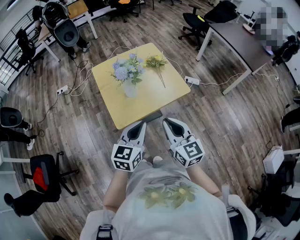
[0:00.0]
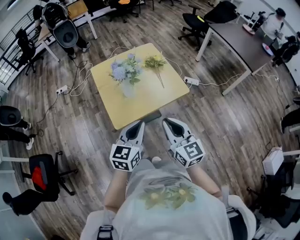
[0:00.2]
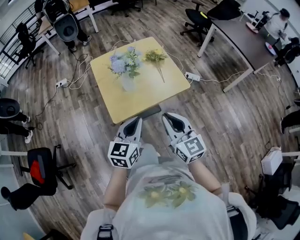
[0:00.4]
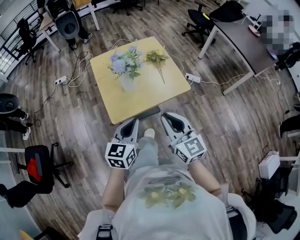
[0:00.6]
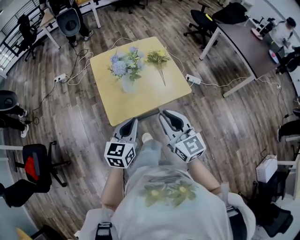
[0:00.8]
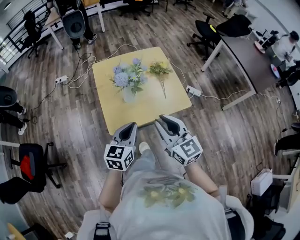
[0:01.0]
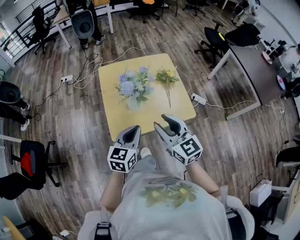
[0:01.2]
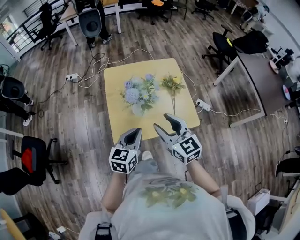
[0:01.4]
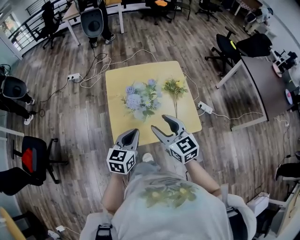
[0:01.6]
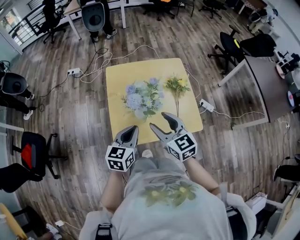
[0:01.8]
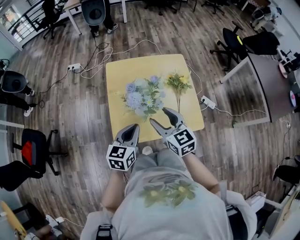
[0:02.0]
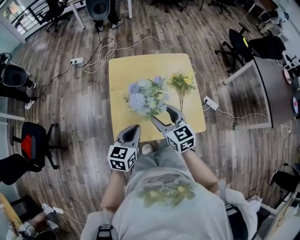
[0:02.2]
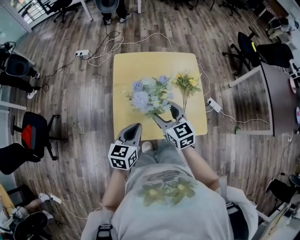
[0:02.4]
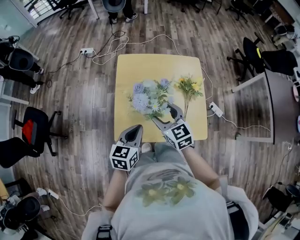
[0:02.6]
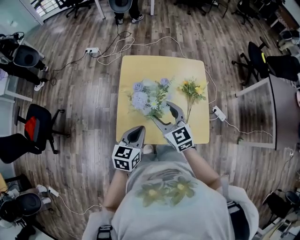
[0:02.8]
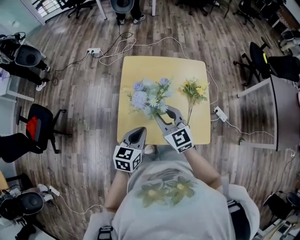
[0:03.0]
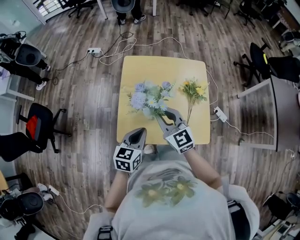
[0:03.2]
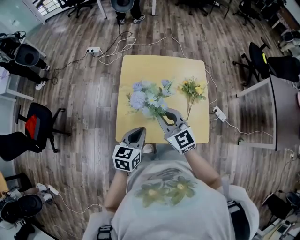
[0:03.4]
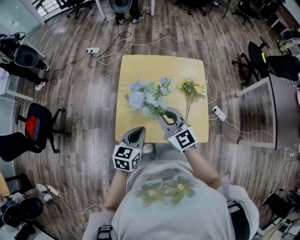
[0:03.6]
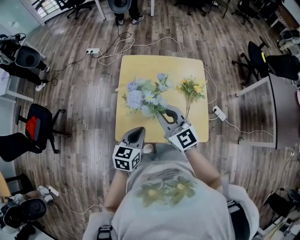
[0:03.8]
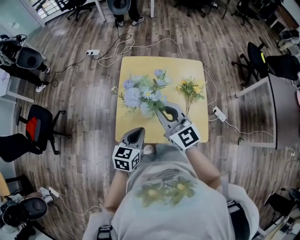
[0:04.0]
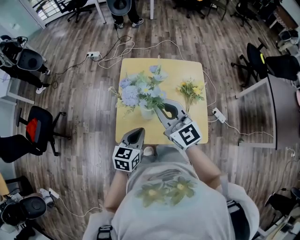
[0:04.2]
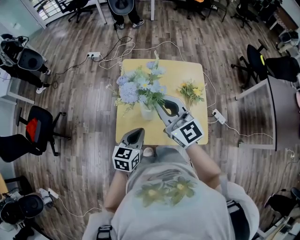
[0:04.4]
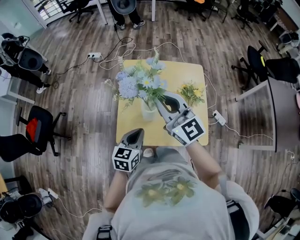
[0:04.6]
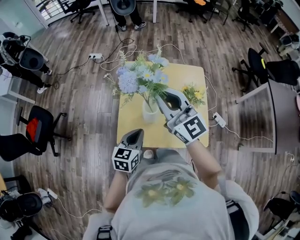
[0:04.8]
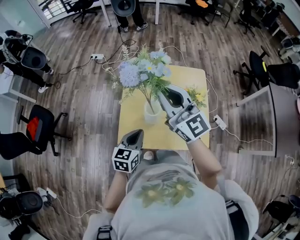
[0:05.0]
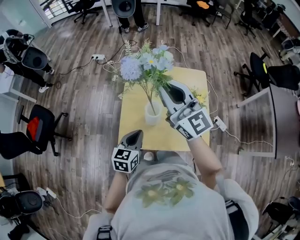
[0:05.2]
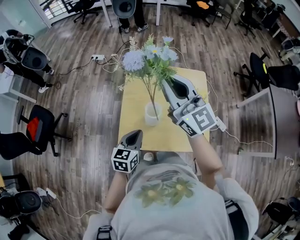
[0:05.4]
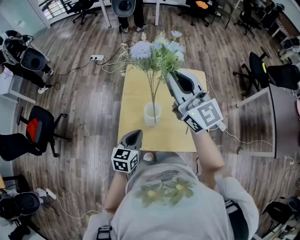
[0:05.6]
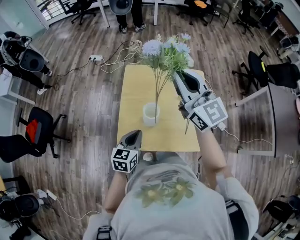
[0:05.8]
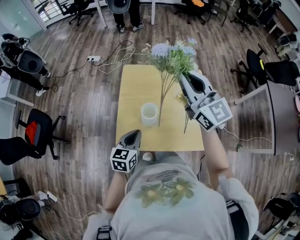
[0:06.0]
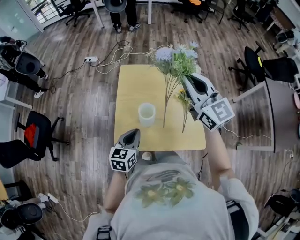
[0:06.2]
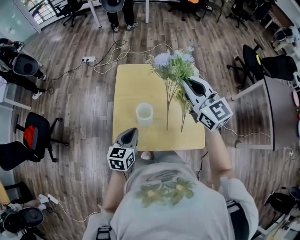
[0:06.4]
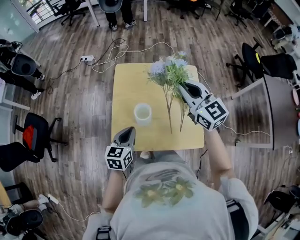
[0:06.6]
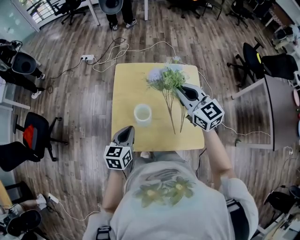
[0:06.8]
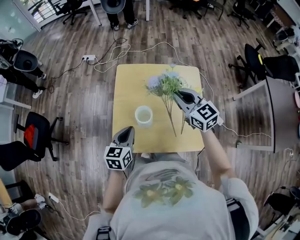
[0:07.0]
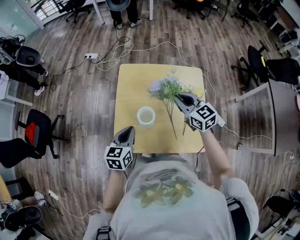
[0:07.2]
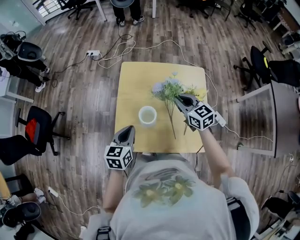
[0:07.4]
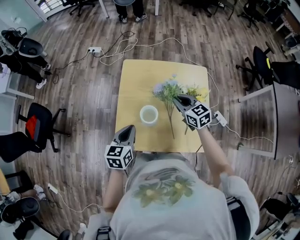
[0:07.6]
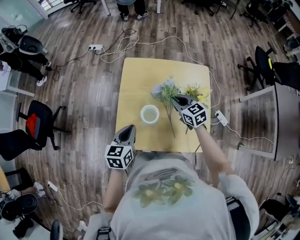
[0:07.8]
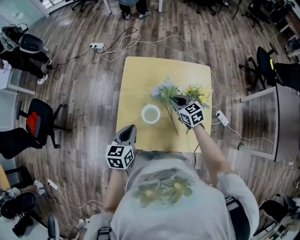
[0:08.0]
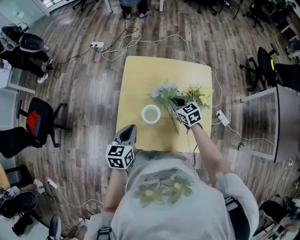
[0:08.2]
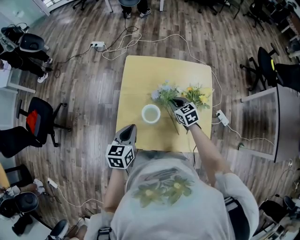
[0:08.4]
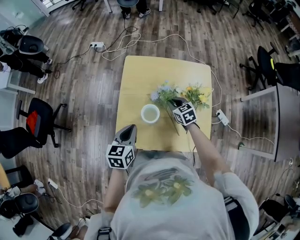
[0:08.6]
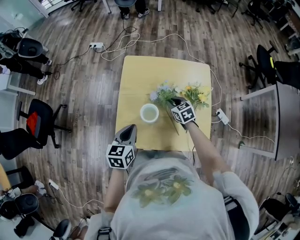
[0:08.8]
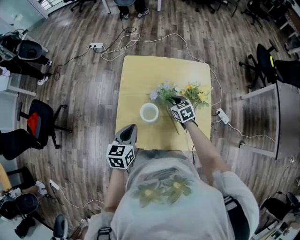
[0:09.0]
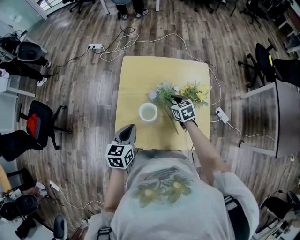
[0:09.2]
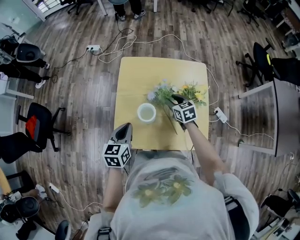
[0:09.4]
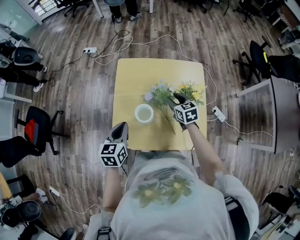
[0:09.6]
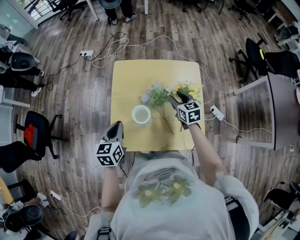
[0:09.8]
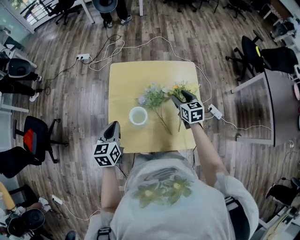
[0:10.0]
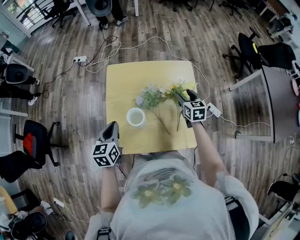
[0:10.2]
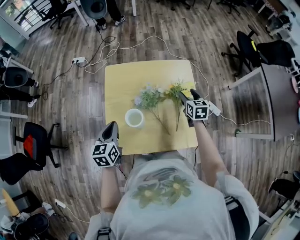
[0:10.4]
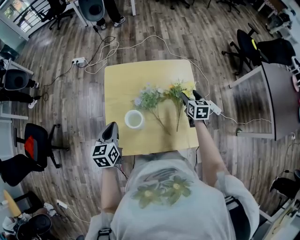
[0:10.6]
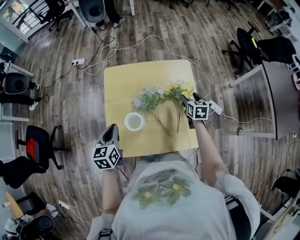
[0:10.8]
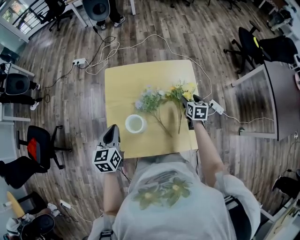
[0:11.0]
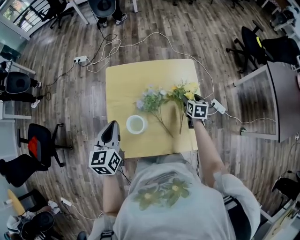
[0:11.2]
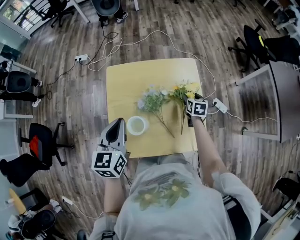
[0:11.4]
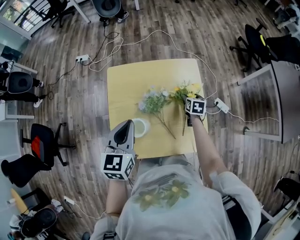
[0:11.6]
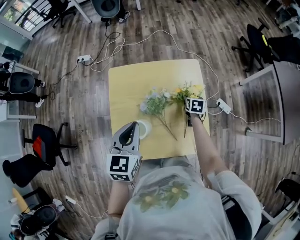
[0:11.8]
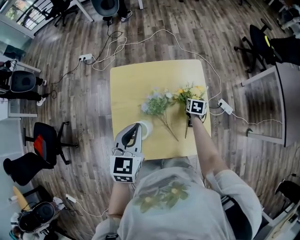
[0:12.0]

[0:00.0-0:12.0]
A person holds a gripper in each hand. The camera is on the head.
0:00.0 to 0:01.6: The two grippers go roughly 25 cm forward. The right gripper turns by roughly 30 degrees, and opens.
0:01.6 to 0:03.0: The right gripper shifts about 15 cm forward, and closes; the left gripper is displaced forward by some 10 cm.
0:03.0 to 0:04.4: The right gripper shifts about 10 cm upward.
0:04.4 to 0:06.0: The right gripper heads upward, to the right and forward, covering about 15 cm.
0:06.0 to 0:07.6: The right gripper is displaced downward by about 30 cm, and tips its fingers downward by about 30 degrees, while the left gripper is displaced forward by approximately 5 cm.
0:07.6 to 0:09.0: The right gripper shifts approximately 10 cm downward.
0:09.0 to 0:10.4: The right gripper is displaced to the right by some 20 cm, turns by some 30 degrees, and opens. Meanwhile the left gripper is displaced forward by about 5 cm.
0:10.4 to 0:12.0: The left gripper shifts some 15 cm to the right, forward and upward. The right gripper heads downward and forward, covering approximately 15 cm, and swivels approximately 30 degrees.

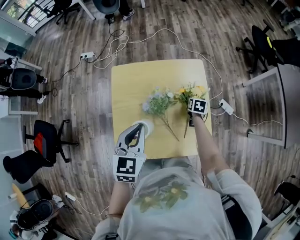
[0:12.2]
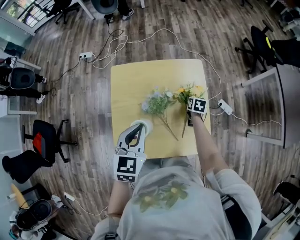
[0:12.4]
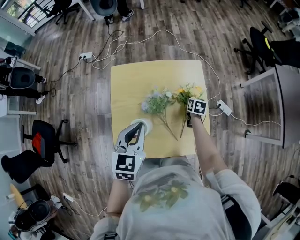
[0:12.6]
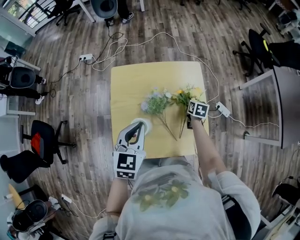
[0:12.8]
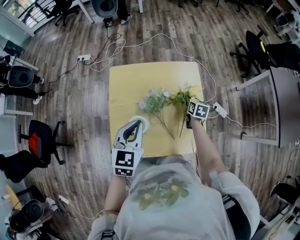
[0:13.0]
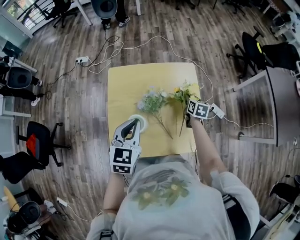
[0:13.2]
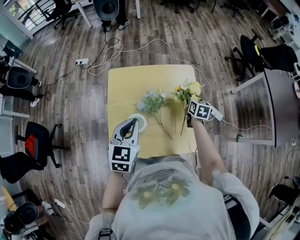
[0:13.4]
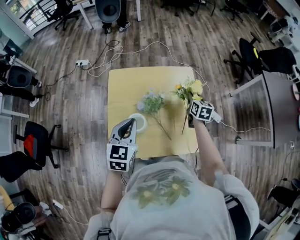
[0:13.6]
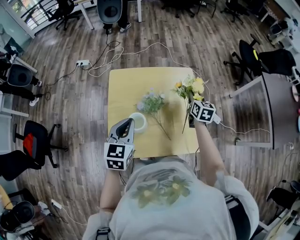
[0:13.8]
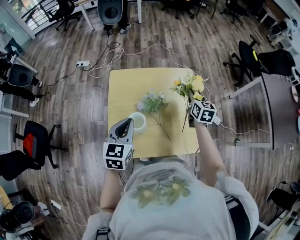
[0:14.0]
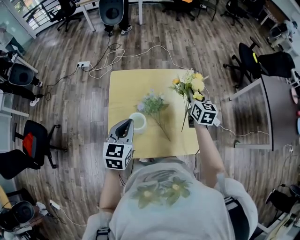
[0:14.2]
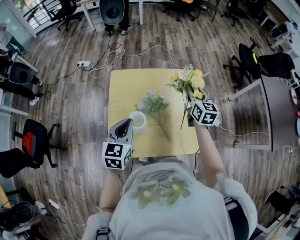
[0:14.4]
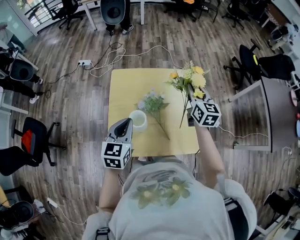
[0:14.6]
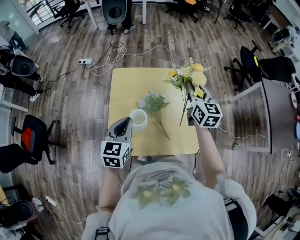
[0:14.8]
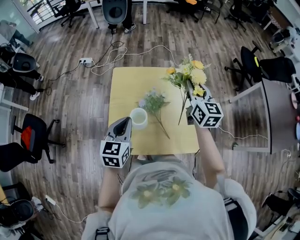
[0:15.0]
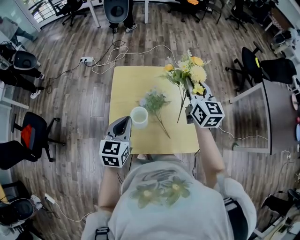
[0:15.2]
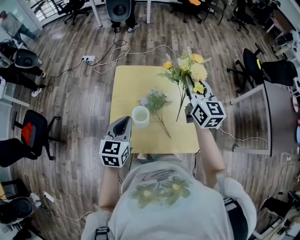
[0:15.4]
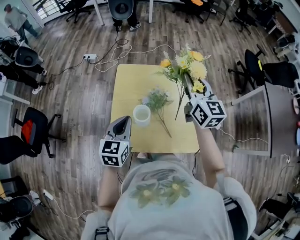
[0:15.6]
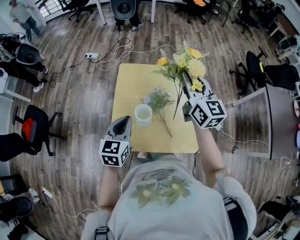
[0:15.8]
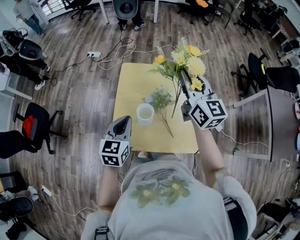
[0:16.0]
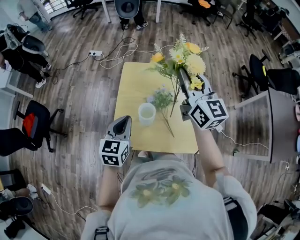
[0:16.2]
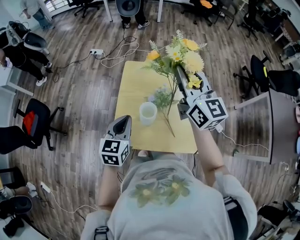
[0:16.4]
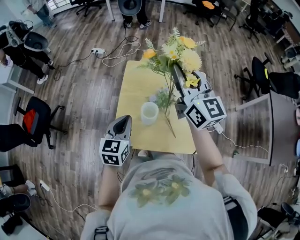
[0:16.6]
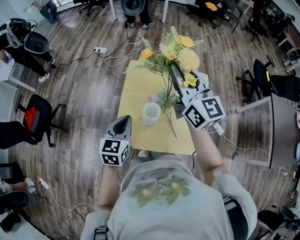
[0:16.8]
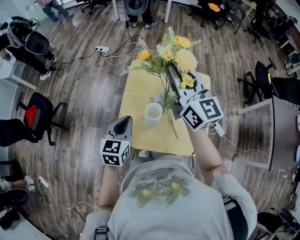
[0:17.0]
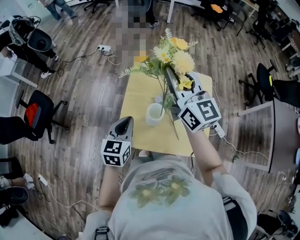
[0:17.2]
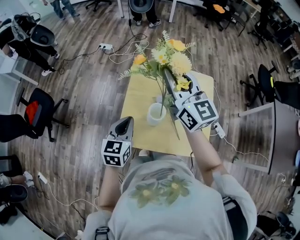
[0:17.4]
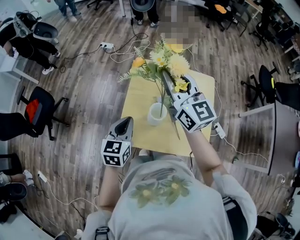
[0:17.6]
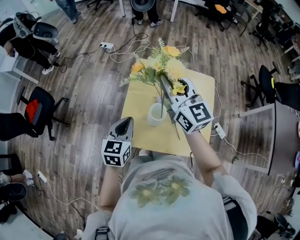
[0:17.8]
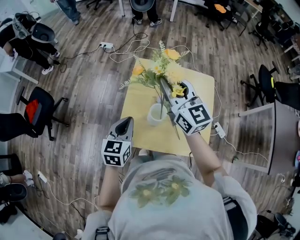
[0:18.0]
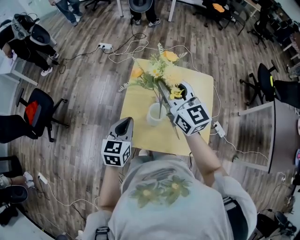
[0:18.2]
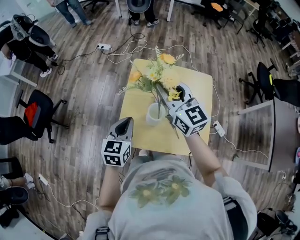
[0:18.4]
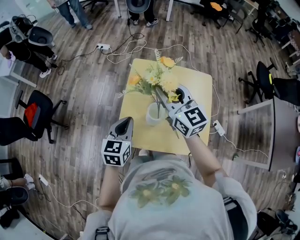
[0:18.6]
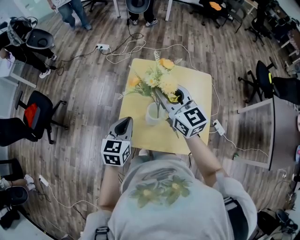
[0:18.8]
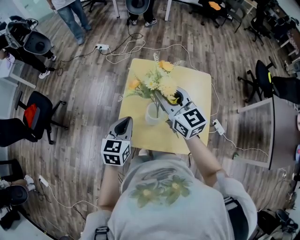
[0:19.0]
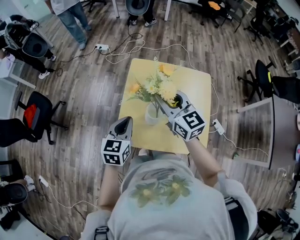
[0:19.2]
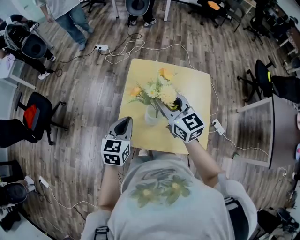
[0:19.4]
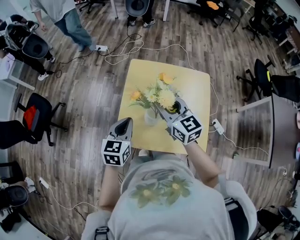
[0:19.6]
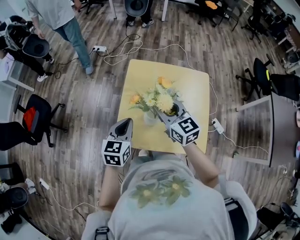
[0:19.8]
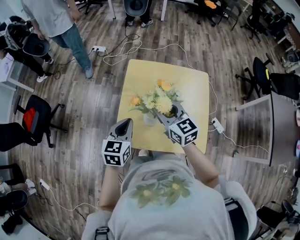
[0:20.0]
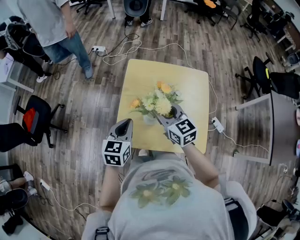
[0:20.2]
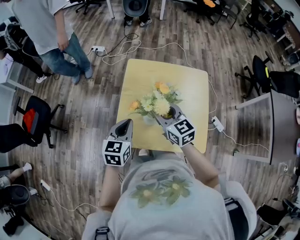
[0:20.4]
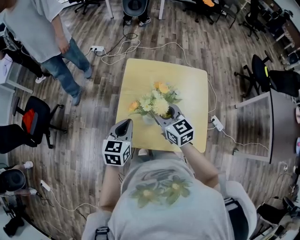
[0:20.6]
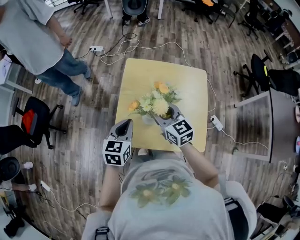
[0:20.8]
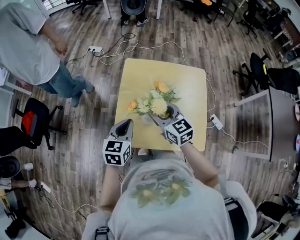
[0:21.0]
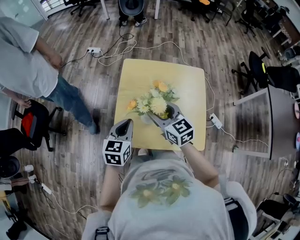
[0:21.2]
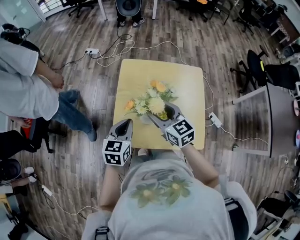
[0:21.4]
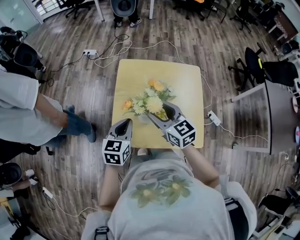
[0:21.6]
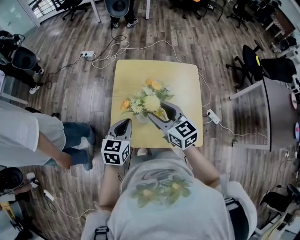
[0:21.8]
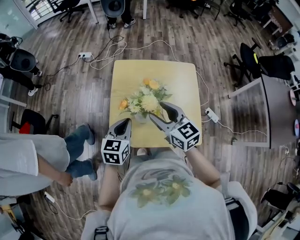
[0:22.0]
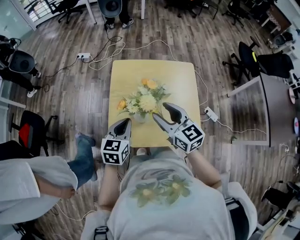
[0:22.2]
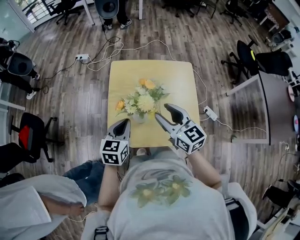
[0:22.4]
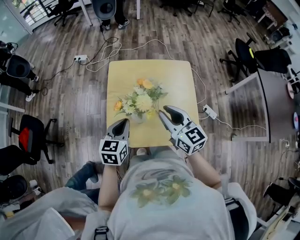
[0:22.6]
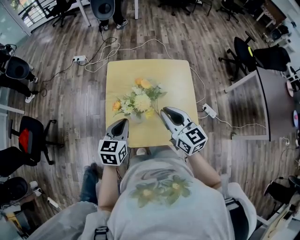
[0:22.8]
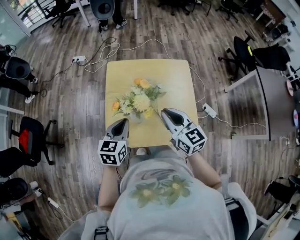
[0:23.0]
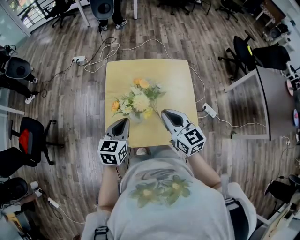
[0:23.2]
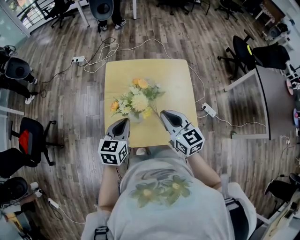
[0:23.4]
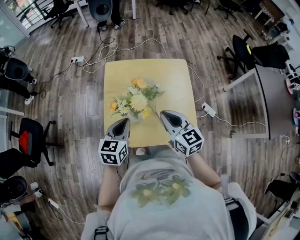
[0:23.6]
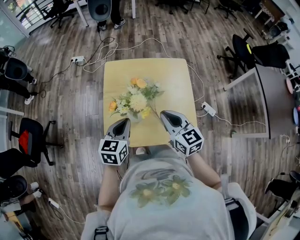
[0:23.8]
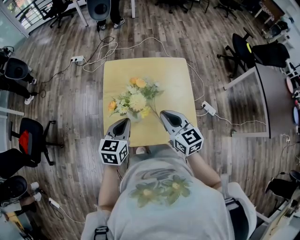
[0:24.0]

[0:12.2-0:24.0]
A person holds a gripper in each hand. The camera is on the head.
0:12.2 to 0:13.6: The right gripper shifts roughly 15 cm upward, rotates some 20 degrees, and closes. The left gripper is displaced backward by about 5 cm.
0:13.6 to 0:15.2: The left gripper moves roughly 5 cm. The right gripper moves upward and to the left, about 25 cm, and turns by some 30 degrees.
0:15.2 to 0:16.6: The right gripper travels to the left and upward by roughly 15 cm, and changes its angle by roughly 20 degrees, while the left gripper travels to the left by roughly 5 cm.
0:16.6 to 0:18.2: The right gripper heads to the left and downward, covering roughly 10 cm.
0:18.2 to 0:19.6: The right gripper is displaced downward and backward by about 10 cm.
0:19.6 to 0:21.0: The right gripper travels downward by about 5 cm.
0:21.0 to 0:22.6: The right gripper shifts roughly 10 cm to the right and backward.
0:22.6 to 0:24.0: The grippers stay close to where they were, moving slightly.
